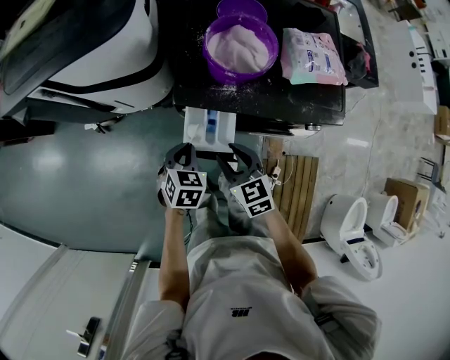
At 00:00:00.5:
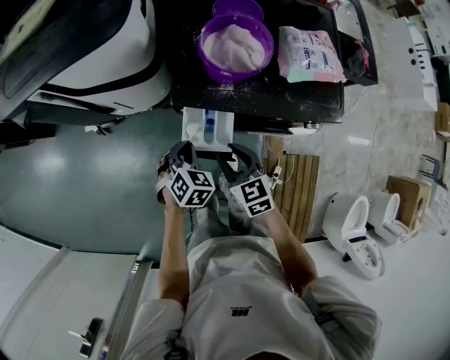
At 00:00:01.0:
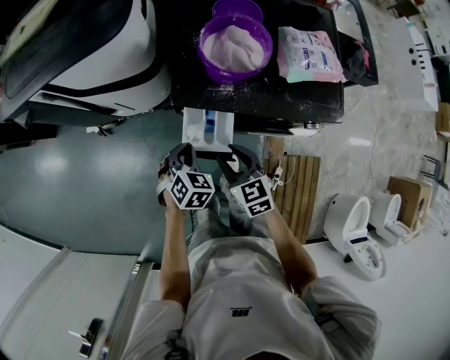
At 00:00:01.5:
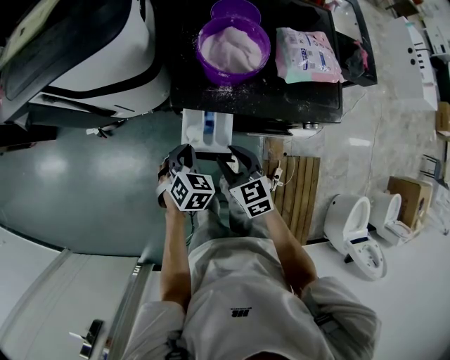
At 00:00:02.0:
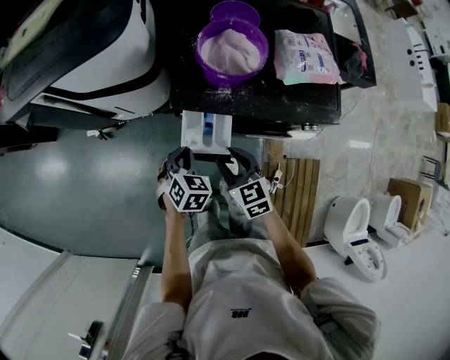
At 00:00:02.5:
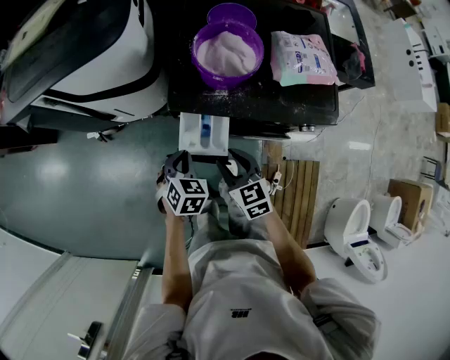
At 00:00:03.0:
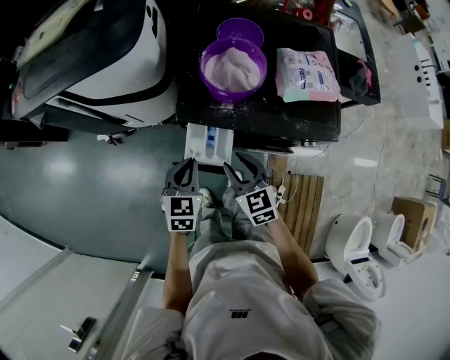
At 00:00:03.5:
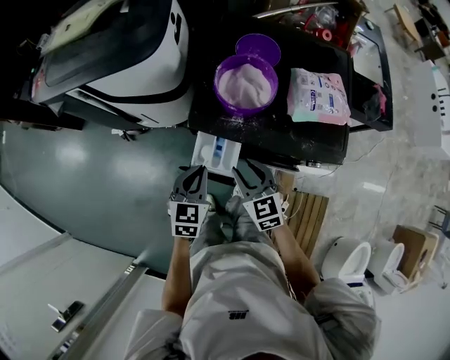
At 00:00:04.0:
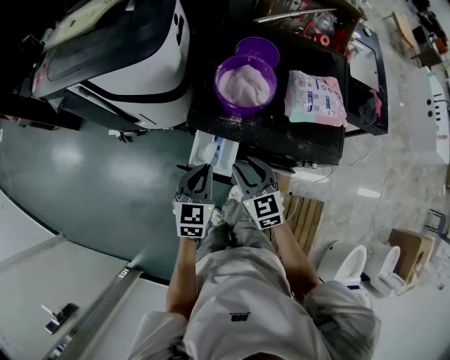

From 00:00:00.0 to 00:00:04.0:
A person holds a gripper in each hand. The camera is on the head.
From 00:00:00.0 to 00:00:02.0: The grippers stay close to where they were, moving slightly.
From 00:00:02.0 to 00:00:04.0: The right gripper goes roughly 5 cm upward, while the left gripper shifts approximately 10 cm upward, and changes its angle by some 30 degrees.

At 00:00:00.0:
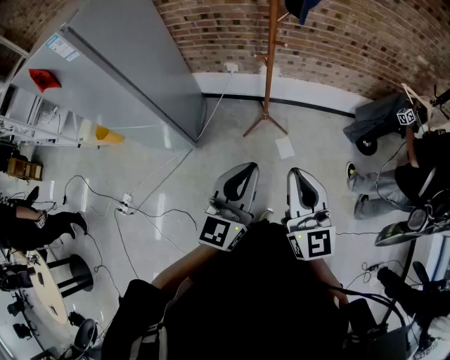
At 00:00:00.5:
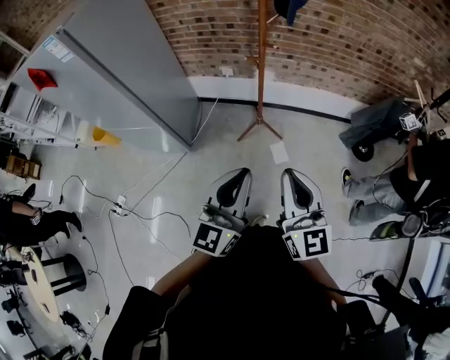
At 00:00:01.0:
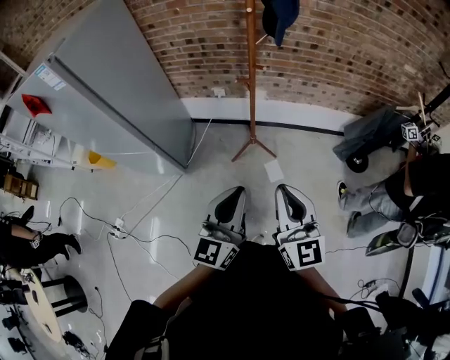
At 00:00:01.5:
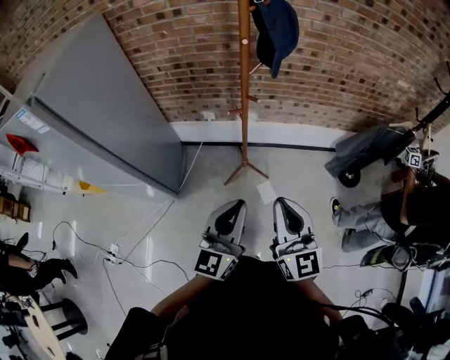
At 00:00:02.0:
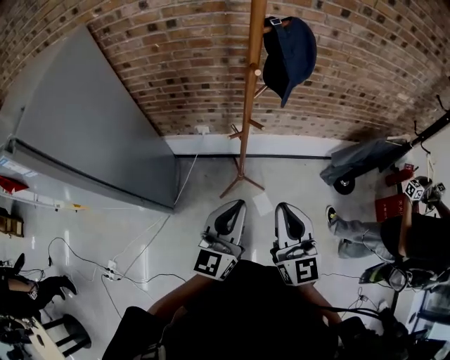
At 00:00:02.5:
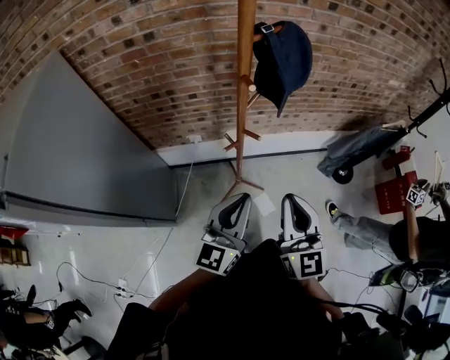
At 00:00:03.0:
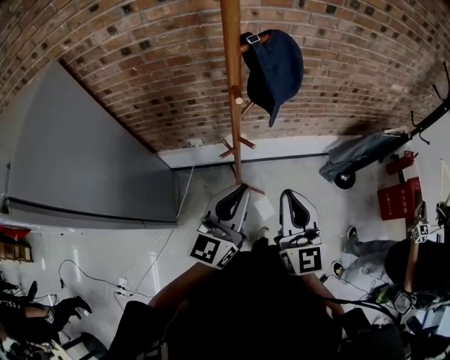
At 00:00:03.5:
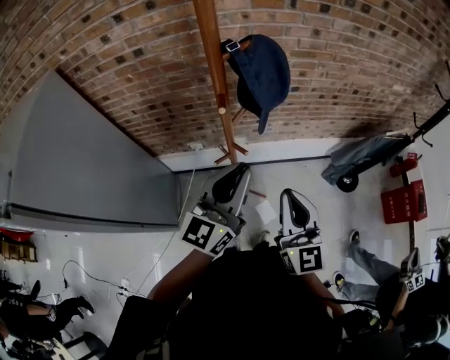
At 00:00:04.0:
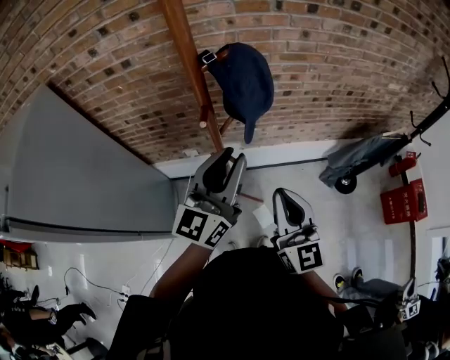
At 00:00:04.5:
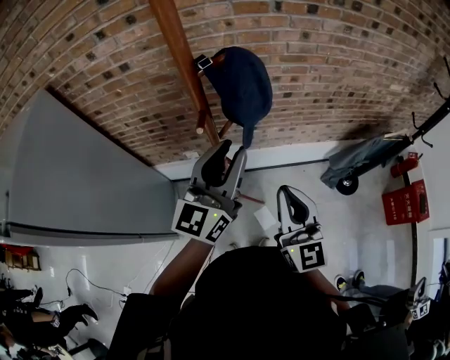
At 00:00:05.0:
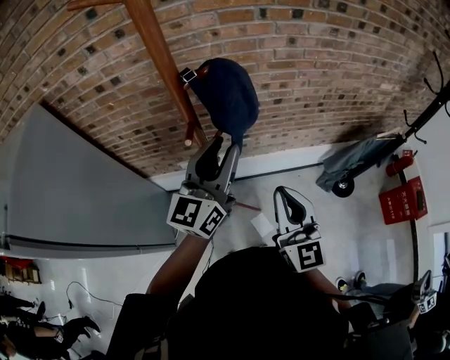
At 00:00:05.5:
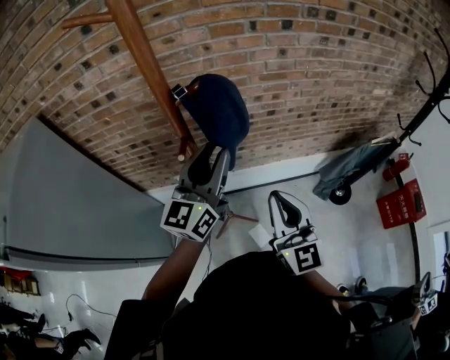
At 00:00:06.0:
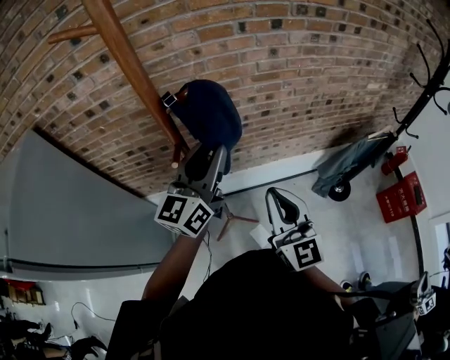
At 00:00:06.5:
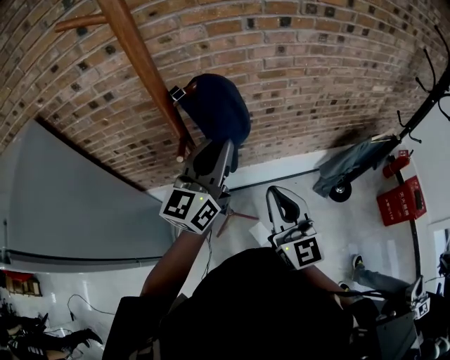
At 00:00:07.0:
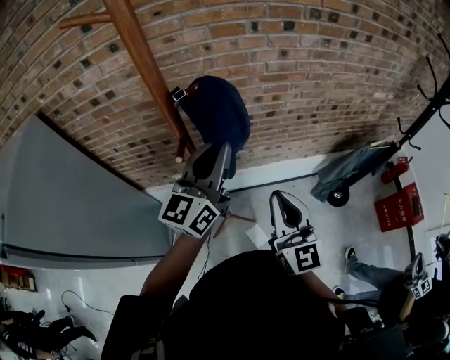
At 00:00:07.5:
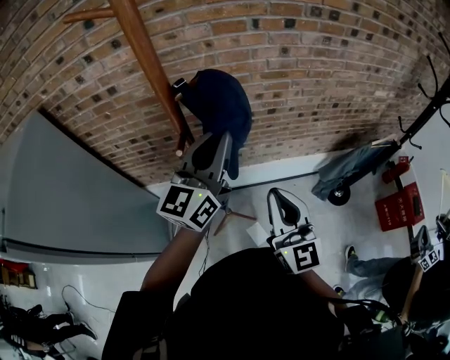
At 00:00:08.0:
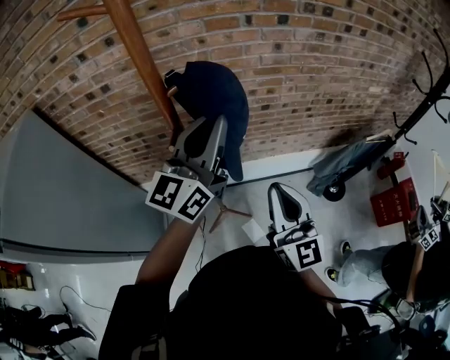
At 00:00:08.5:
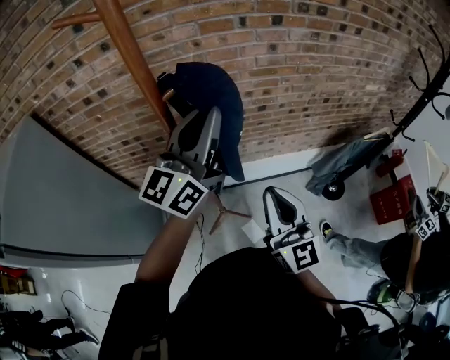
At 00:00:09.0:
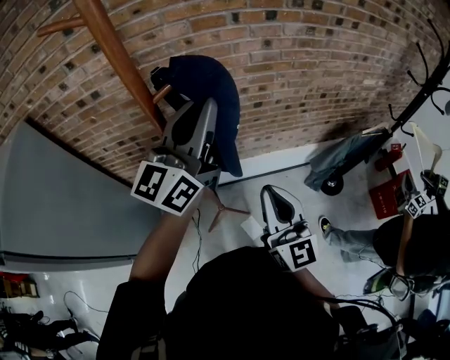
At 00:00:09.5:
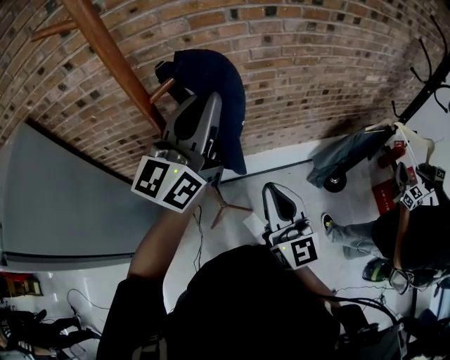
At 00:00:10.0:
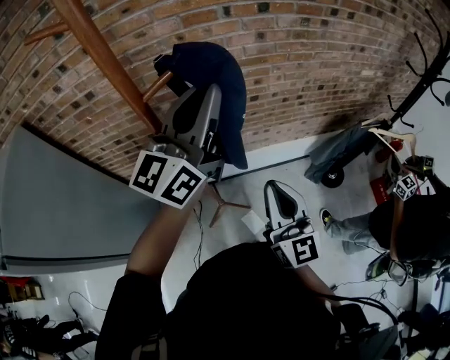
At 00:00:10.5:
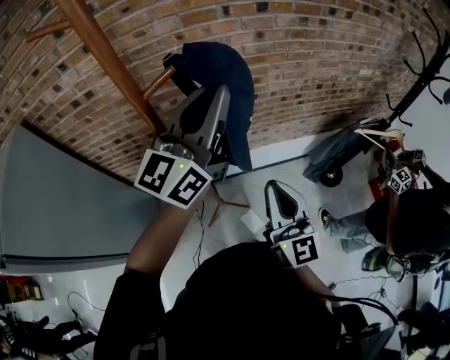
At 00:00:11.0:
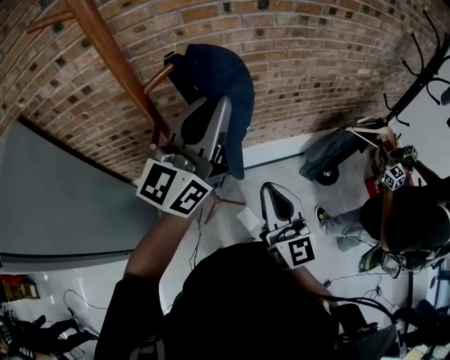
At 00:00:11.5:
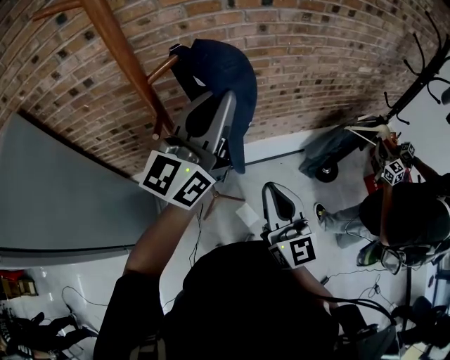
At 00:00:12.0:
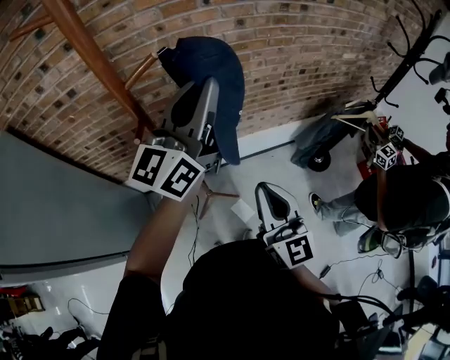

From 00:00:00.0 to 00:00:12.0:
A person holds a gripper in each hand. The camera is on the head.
From 00:00:00.0 to 00:00:02.0: The grippers both shift forward by some 25 cm.
From 00:00:02.0 to 00:00:04.0: The right gripper goes roughly 15 cm forward and to the right. The left gripper travels forward and upward by roughly 25 cm.
From 00:00:04.0 to 00:00:06.0: The left gripper shifts approximately 10 cm forward; the right gripper moves forward, approximately 5 cm.
From 00:00:06.0 to 00:00:08.0: The left gripper moves upward, roughly 5 cm, and closes up.
From 00:00:08.0 to 00:00:10.0: The left gripper ends up about 5 cm from where it was.
From 00:00:10.0 to 00:00:12.0: There are only small adjustments of the grippers.

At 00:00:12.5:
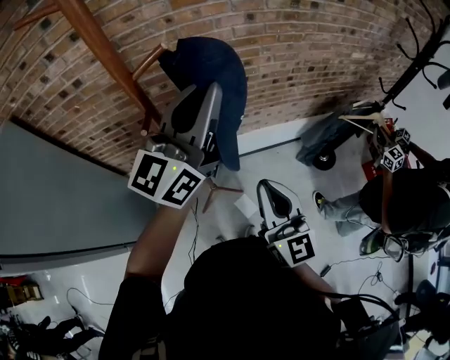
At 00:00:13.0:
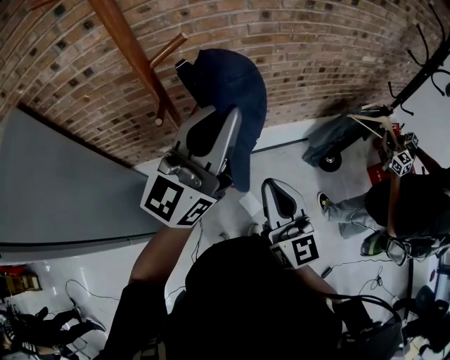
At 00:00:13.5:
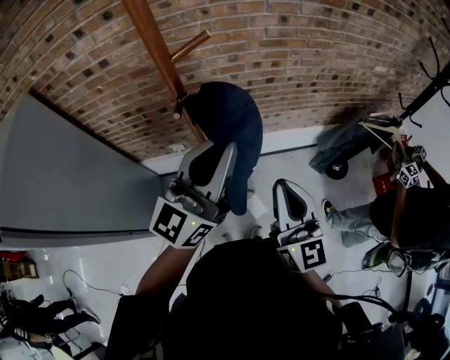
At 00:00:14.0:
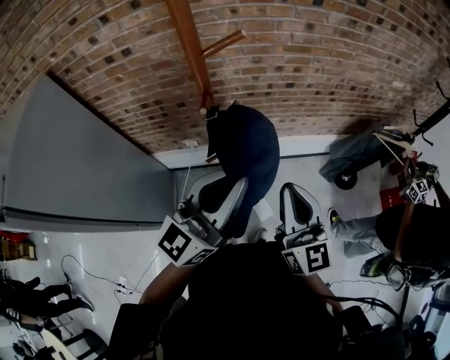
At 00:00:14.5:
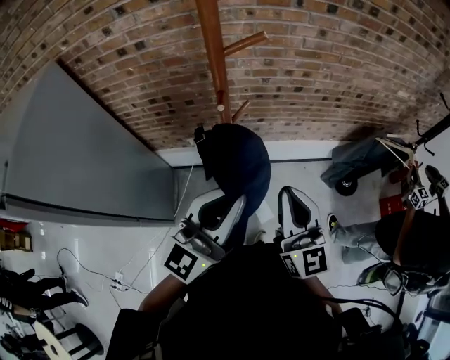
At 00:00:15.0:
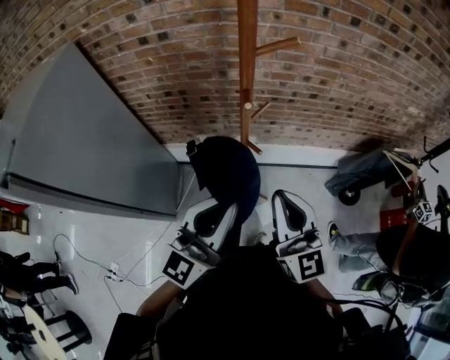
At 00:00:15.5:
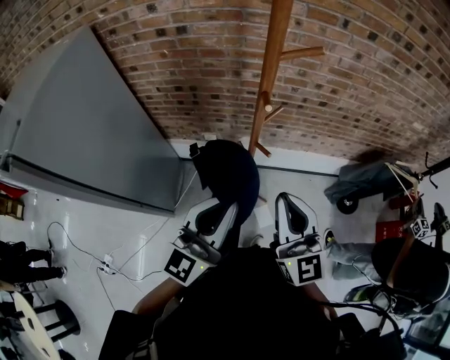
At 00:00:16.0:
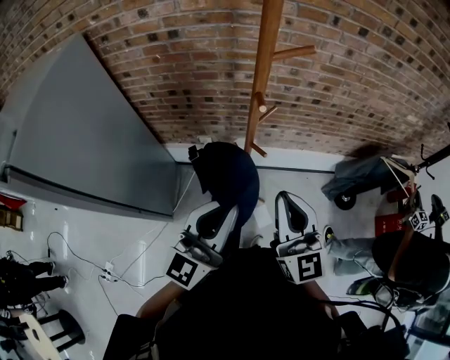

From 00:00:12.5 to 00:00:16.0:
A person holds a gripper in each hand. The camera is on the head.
From 00:00:12.5 to 00:00:14.5: The left gripper shifts some 20 cm backward and downward. Meanwhile the right gripper travels to the left by about 5 cm.
From 00:00:14.5 to 00:00:16.0: Both grippers move to the left, some 5 cm.

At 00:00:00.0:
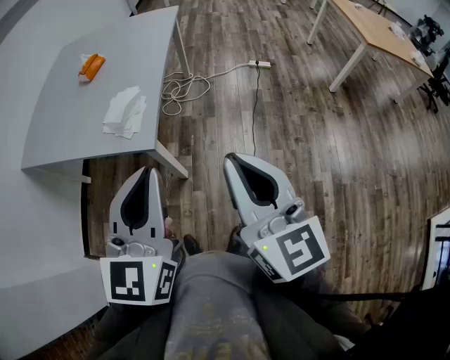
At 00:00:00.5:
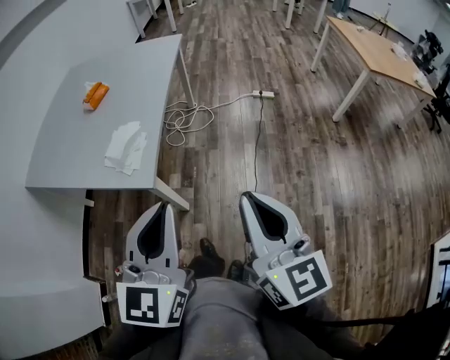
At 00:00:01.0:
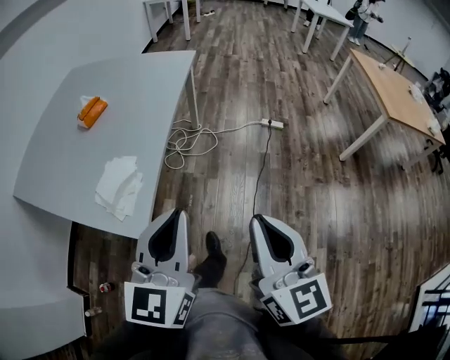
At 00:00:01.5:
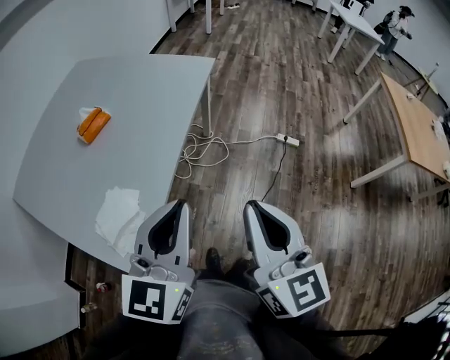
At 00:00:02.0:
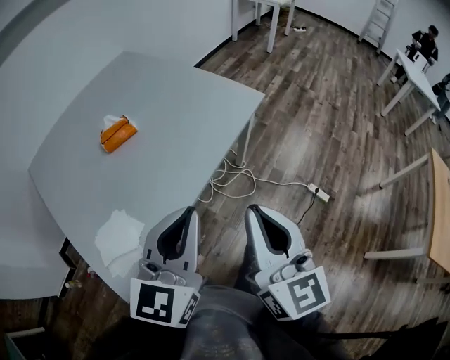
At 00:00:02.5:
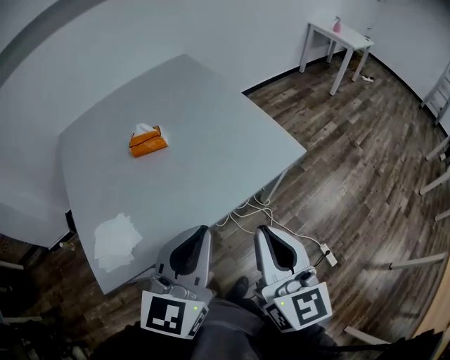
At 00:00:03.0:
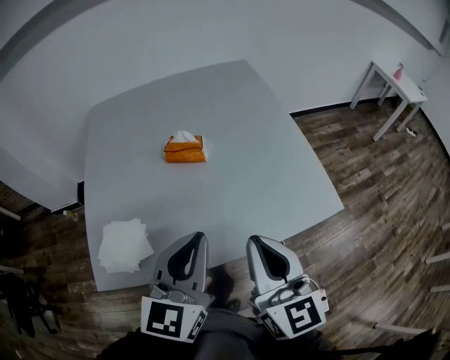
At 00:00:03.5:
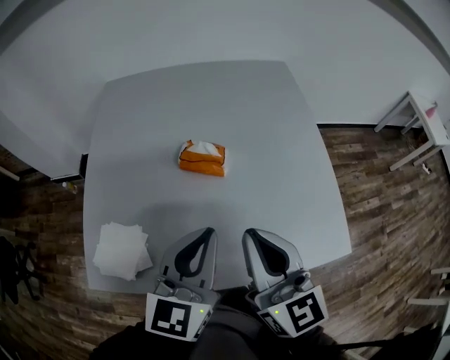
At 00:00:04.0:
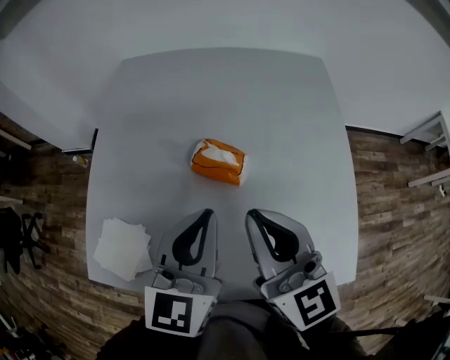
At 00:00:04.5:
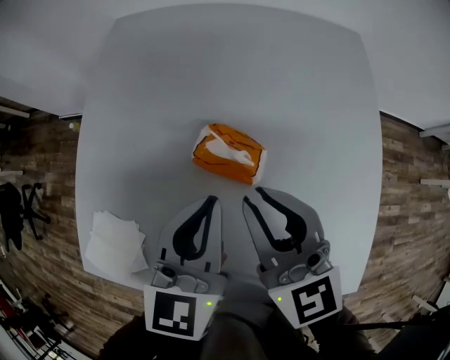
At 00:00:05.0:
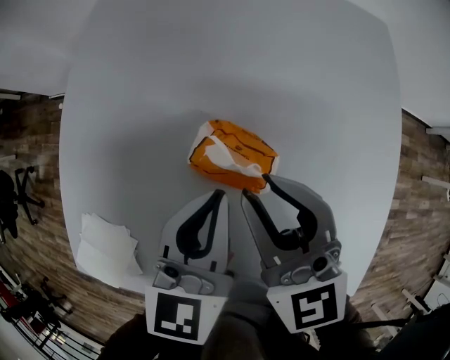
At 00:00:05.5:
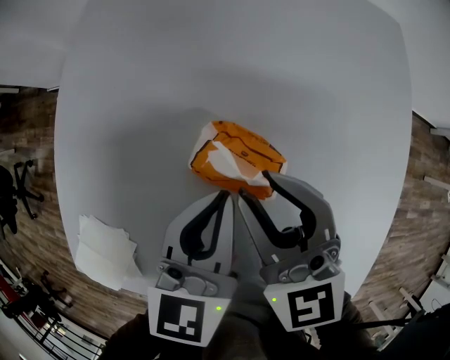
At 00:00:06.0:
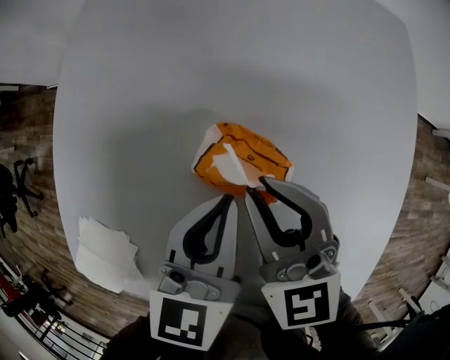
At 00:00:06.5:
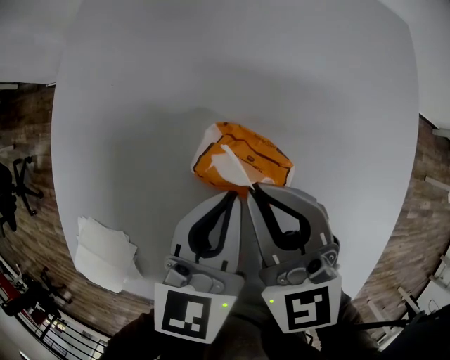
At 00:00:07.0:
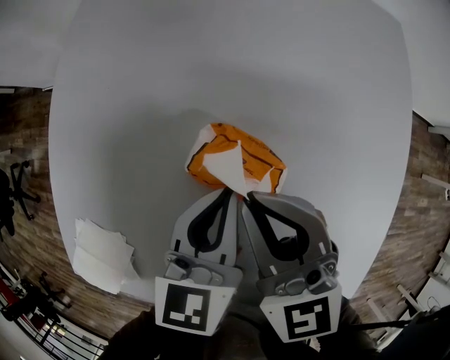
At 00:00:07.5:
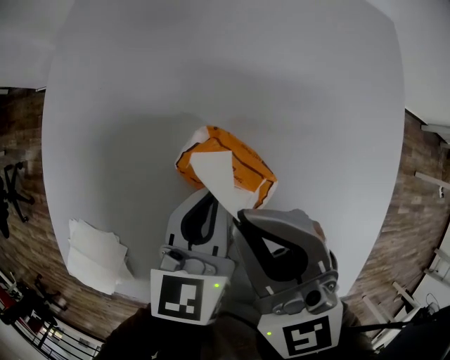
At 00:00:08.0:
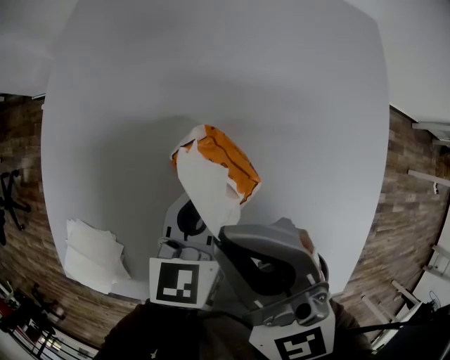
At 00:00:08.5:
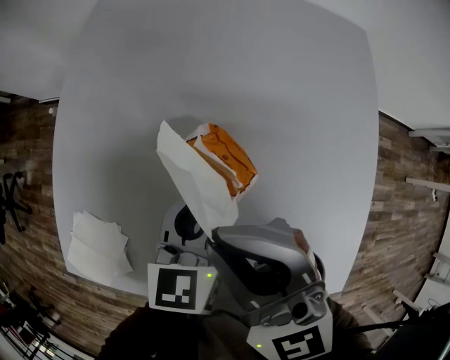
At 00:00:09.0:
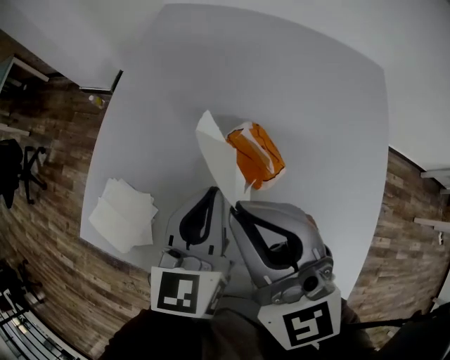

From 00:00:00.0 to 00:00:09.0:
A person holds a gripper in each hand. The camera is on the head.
From 00:00:00.0 to 00:00:02.0: The pair of grippers is taken roughly 60 cm. The right gripper rotates about 30 degrees. The left gripper swivels roughly 20 degrees.
From 00:00:02.0 to 00:00:04.5: The pair of grippers is taken about 50 cm. The left gripper rotates some 60 degrees, while the right gripper rotates about 70 degrees.
From 00:00:04.5 to 00:00:07.0: Both grippers travel together downward and forward, about 10 cm.
From 00:00:07.0 to 00:00:09.0: The left gripper goes roughly 15 cm upward, to the left and backward. Meanwhile the right gripper goes roughly 20 cm upward, backward and to the left.
